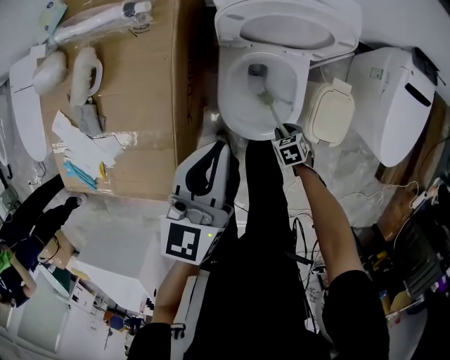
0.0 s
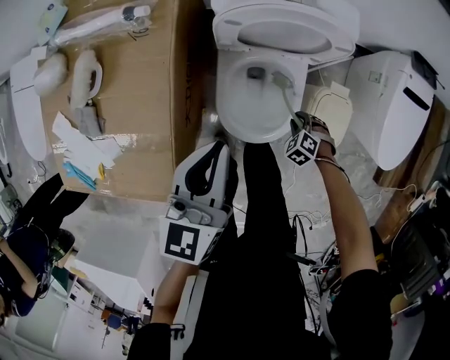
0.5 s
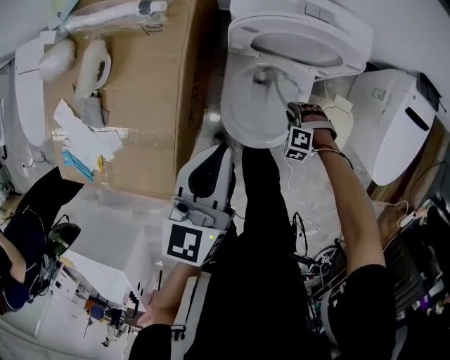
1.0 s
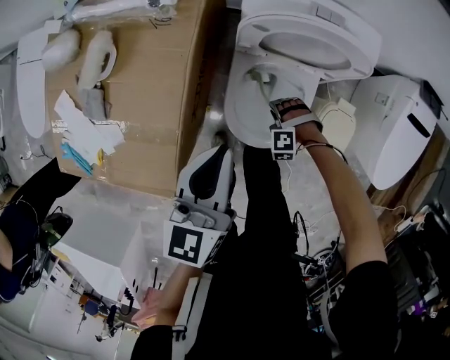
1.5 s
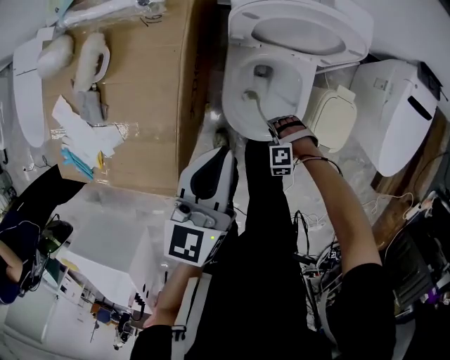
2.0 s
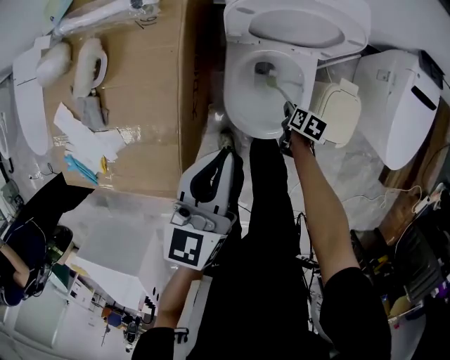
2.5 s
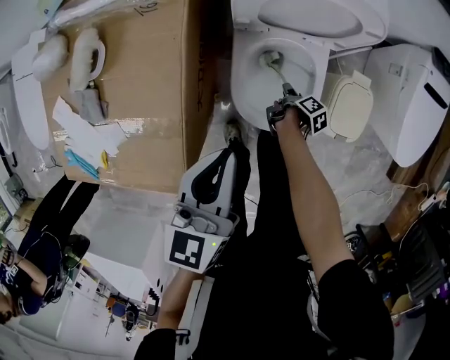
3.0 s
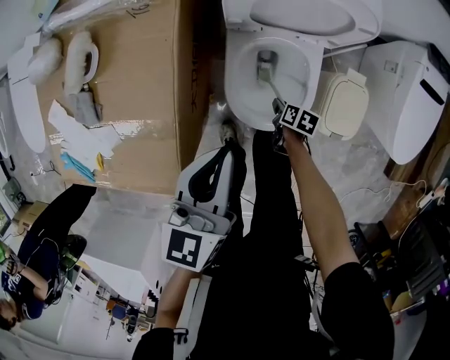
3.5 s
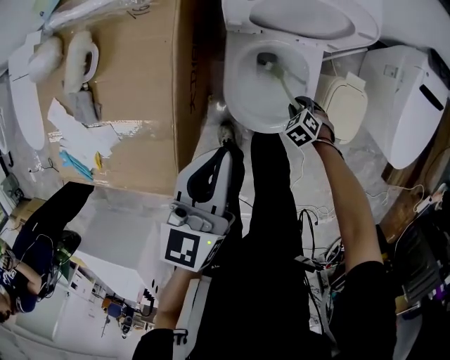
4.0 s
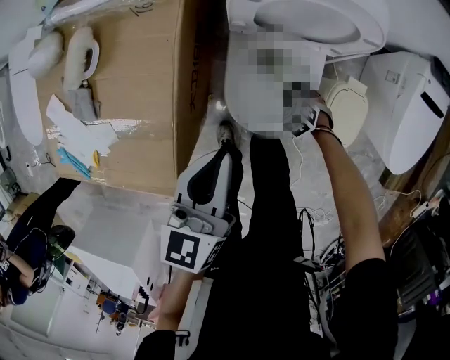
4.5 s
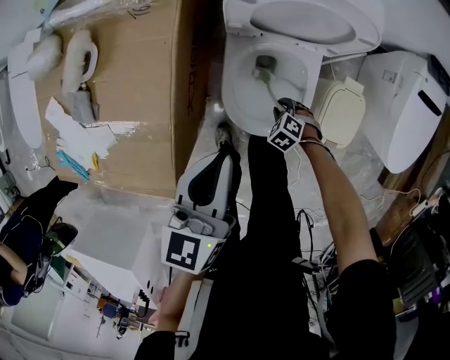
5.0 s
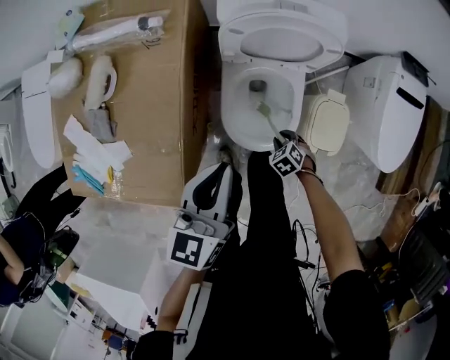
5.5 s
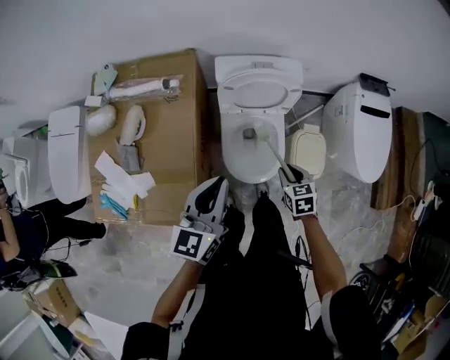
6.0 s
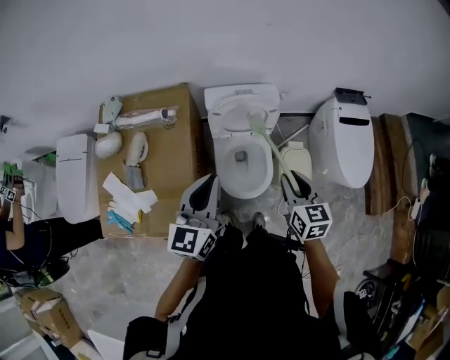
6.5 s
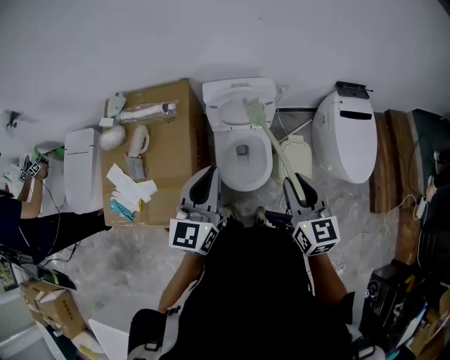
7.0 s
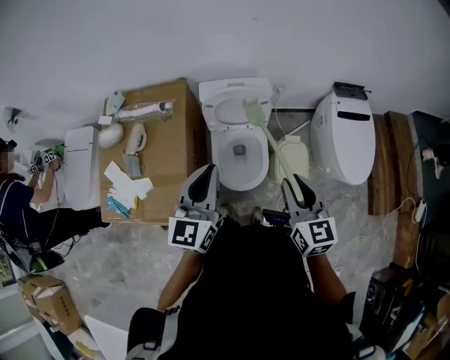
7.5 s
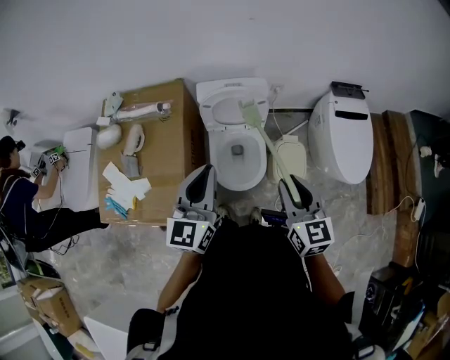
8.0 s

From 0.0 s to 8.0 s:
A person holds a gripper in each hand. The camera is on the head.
From 0.0 s to 2.0 s: The right gripper rotates around the line of its fingers by roughly 80 degrees, counterclockwise from behind.
From 2.0 s to 4.0 s: The right gripper ends up about 10 cm from where it was, and twists some 50 degrees clockwise, seen from behind.
From 4.0 s to 6.0 s: The right gripper travels upward by approximately 35 cm, and rotates around the line of its fingers by some 40 degrees, clockwise from behind. Meanwhile the left gripper travels upward by roughly 15 cm.
From 6.0 s to 8.0 s: The left gripper moves upward and to the right, approximately 15 cm. Meanwhile the right gripper travels upward by some 30 cm, and tips its fingers upward by some 40 degrees.

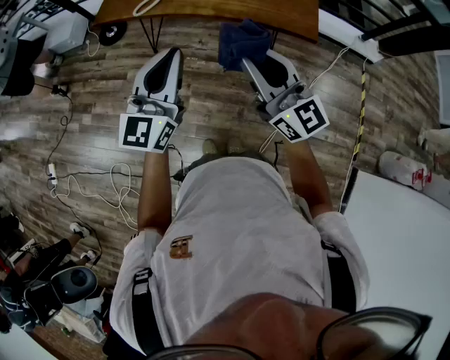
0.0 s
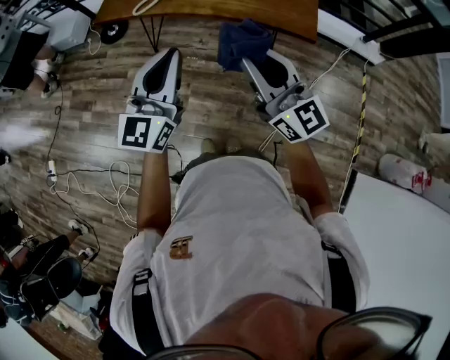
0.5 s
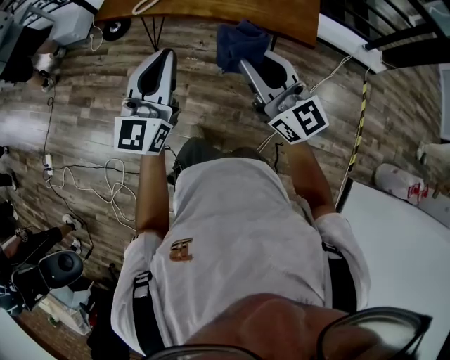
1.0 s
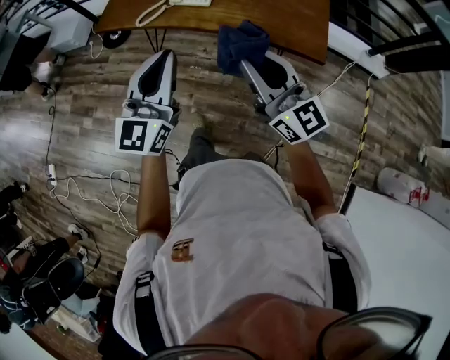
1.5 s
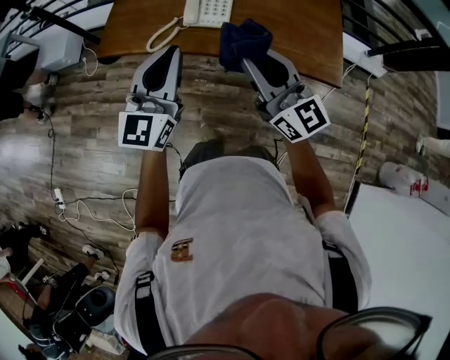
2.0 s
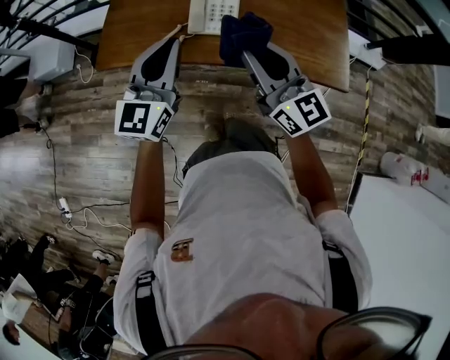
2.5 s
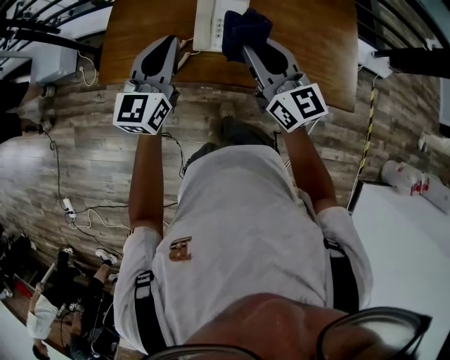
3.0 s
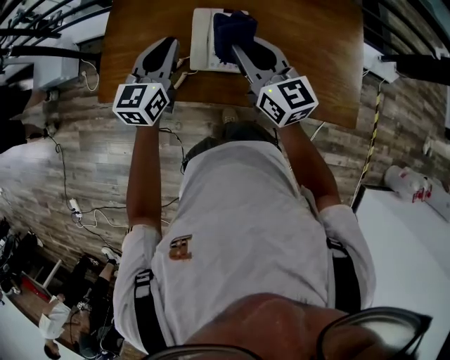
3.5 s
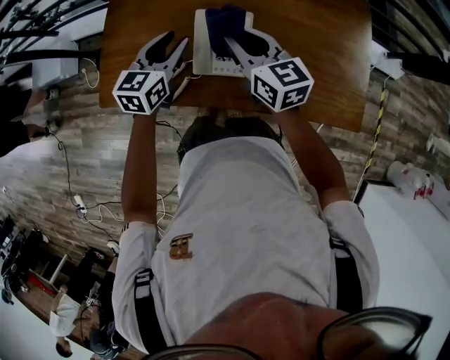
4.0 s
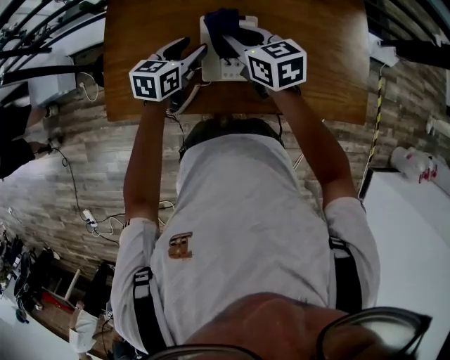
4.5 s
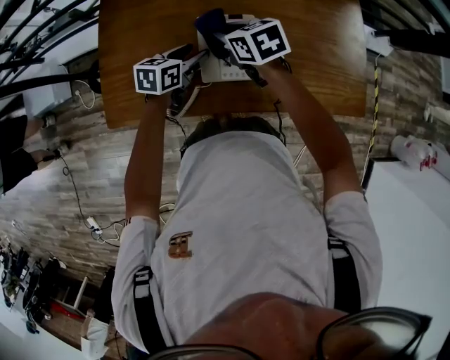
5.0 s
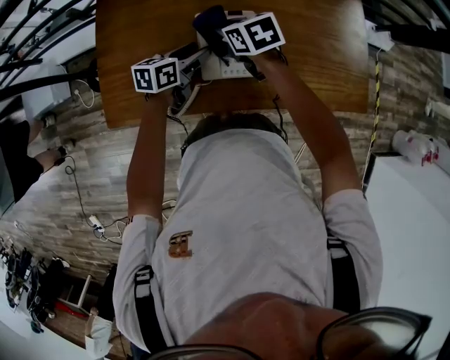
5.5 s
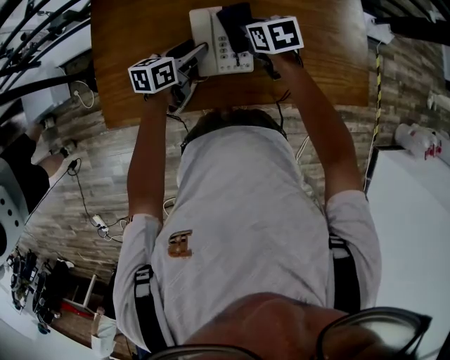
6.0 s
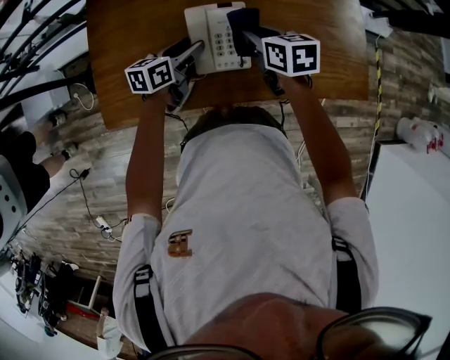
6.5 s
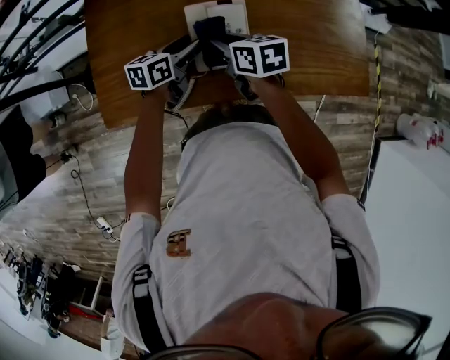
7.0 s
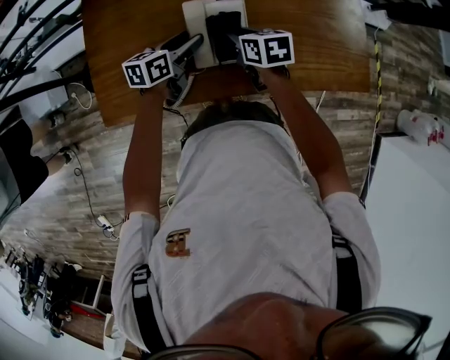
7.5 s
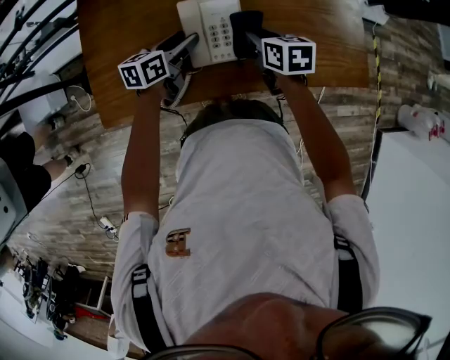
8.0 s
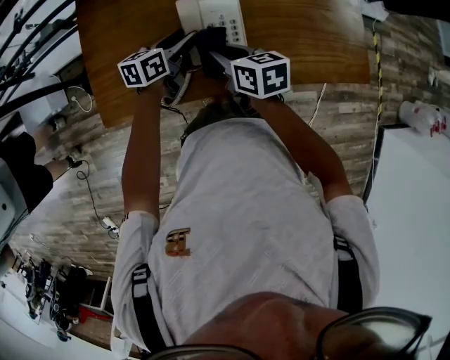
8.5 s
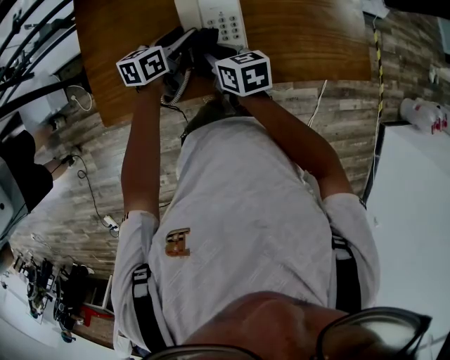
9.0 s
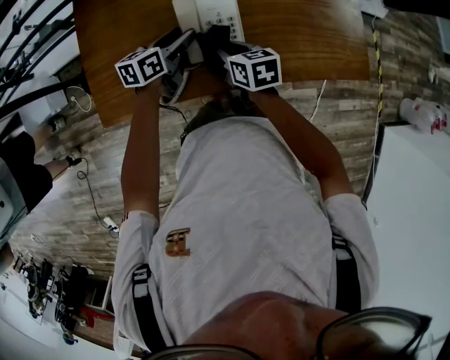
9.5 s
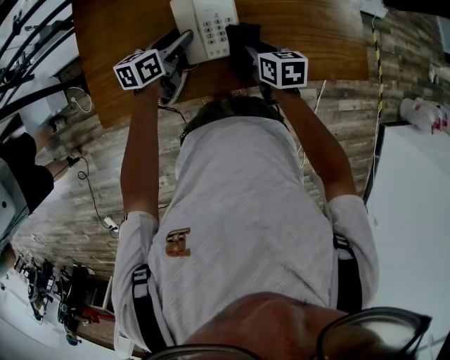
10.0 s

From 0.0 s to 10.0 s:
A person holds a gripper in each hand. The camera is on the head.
From 0.0 s to 2.0 s: The two grippers go approximately 35 cm forward.
From 2.0 s to 4.0 s: Both grippers are carried forward, about 40 cm. The left gripper goes some 15 cm downward, rotates roughly 30 degrees, and opens its fingers. Meanwhile the right gripper swivels approximately 30 degrees.
From 4.0 s to 6.0 s: The left gripper goes some 10 cm downward, rotates about 30 degrees, and opens up. Meanwhile the right gripper heads downward and forward, covering approximately 15 cm, and tips its fingers downward by roughly 40 degrees.
From 6.0 s to 8.0 s: The right gripper goes about 5 cm backward.
From 8.0 s to 10.0 s: The right gripper travels to the left and back again, some 10 cm each way.

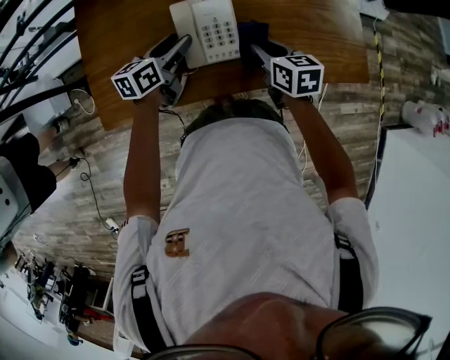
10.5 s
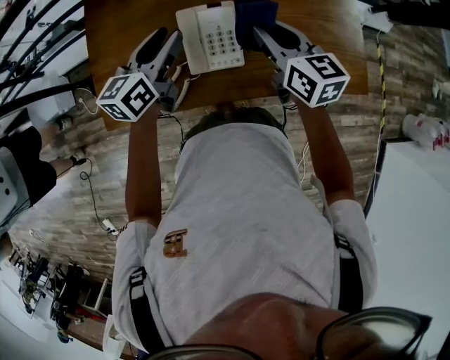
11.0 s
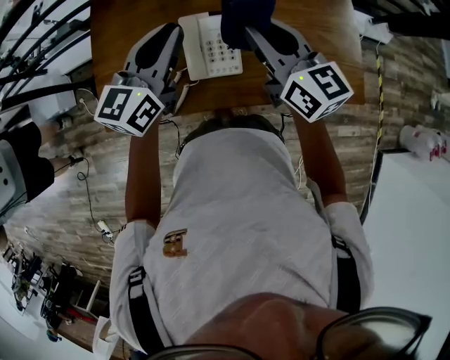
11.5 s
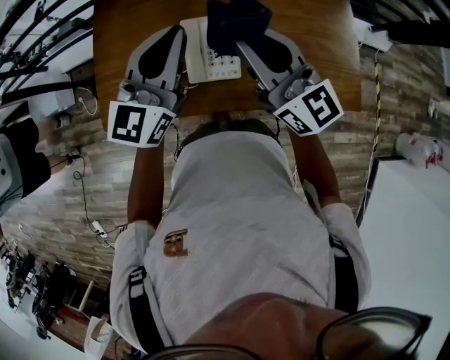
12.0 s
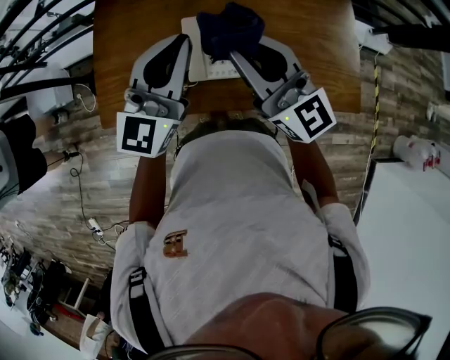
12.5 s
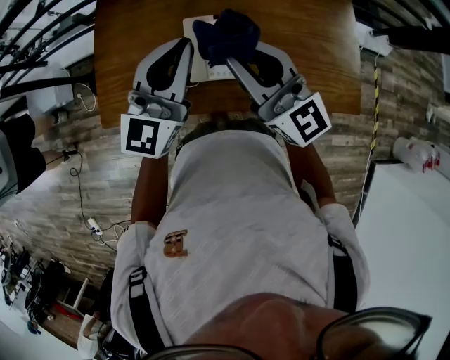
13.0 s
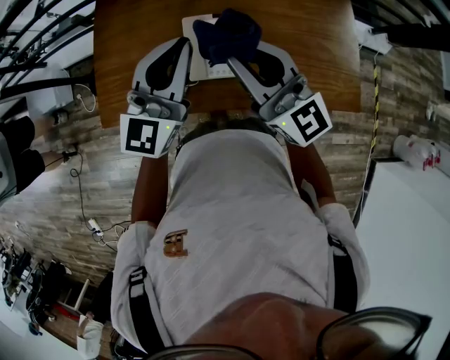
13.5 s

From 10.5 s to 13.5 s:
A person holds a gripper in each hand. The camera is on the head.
From 10.5 s to 12.0 s: The grippers both shift upward by about 25 cm. The left gripper swivels about 50 degrees, and closes its fingers; the right gripper angles its fingers upward, by about 50 degrees.
From 12.0 s to 13.5 s: The grippers stay close to where they were, moving slightly.

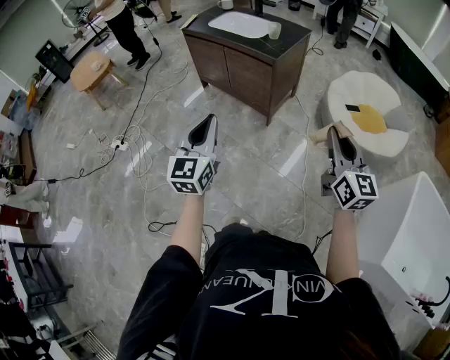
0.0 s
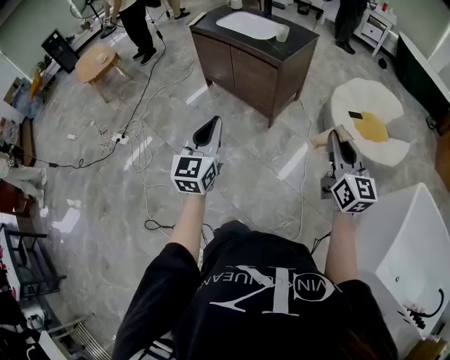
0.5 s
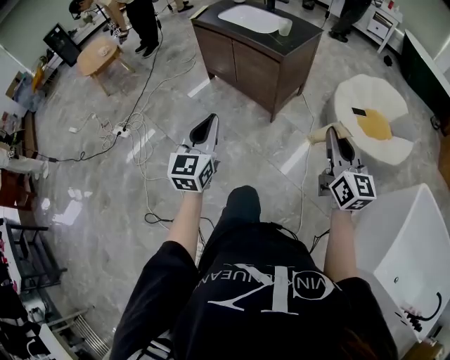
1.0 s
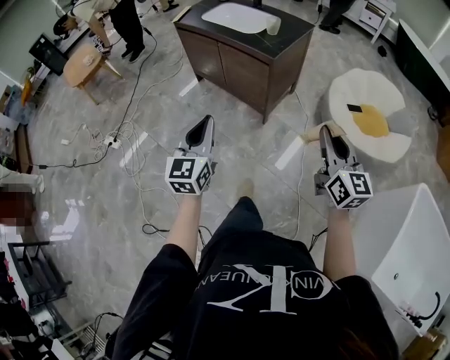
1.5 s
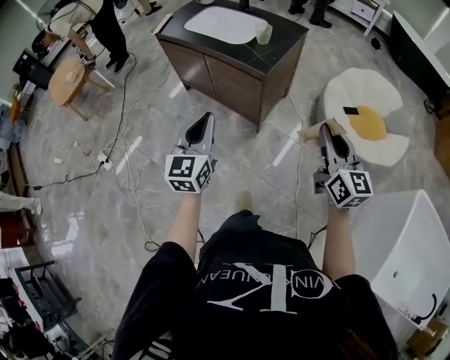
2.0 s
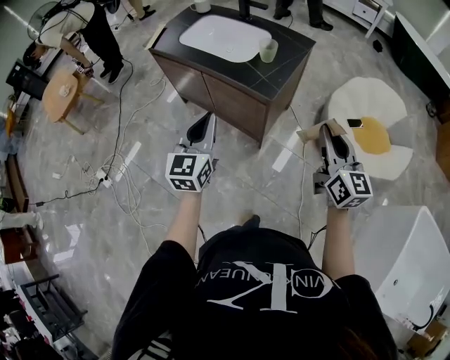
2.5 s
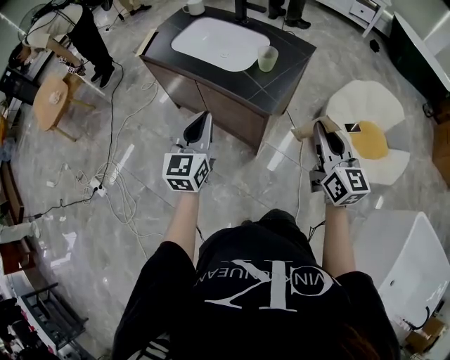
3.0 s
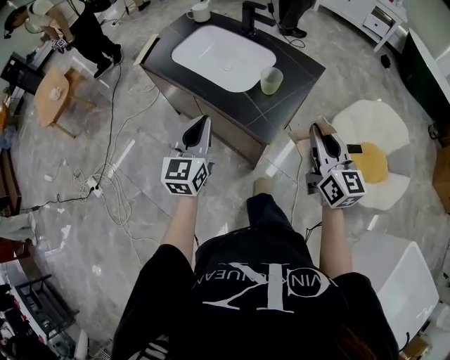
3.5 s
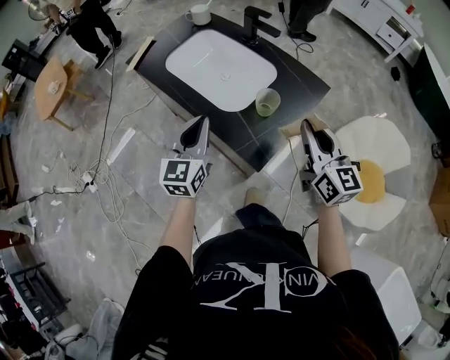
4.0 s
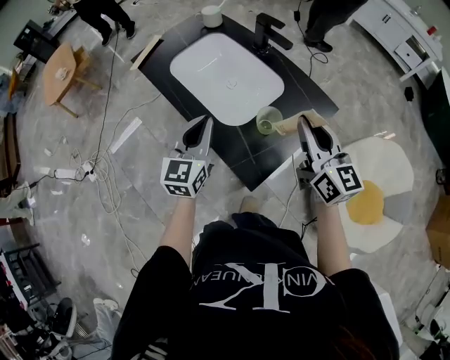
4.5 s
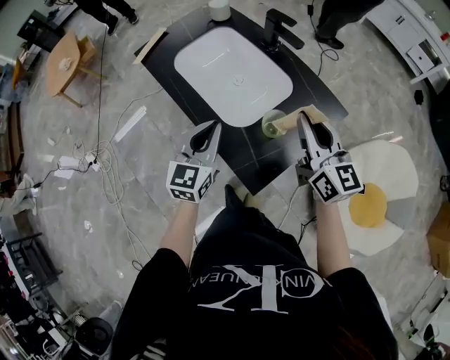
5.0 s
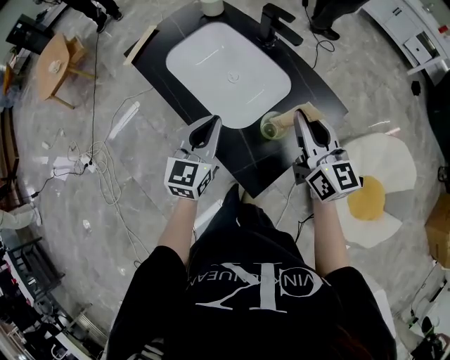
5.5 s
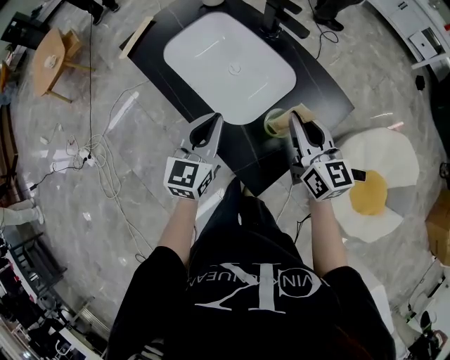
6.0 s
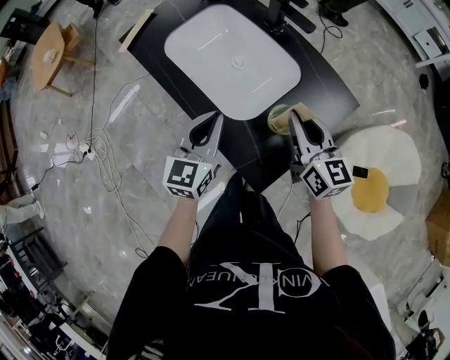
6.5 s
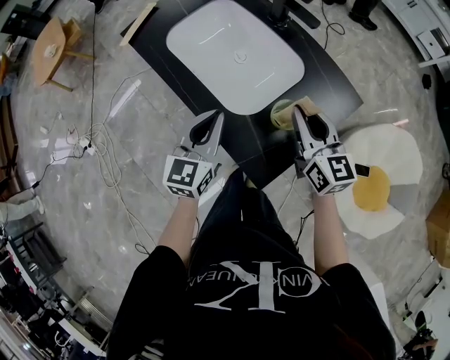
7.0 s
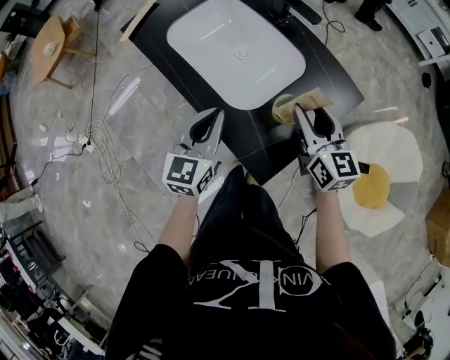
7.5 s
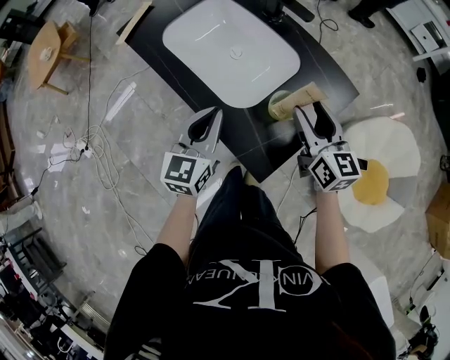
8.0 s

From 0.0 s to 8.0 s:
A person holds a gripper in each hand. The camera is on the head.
From 0.0 s to 2.0 s: Both grippers move forward, some 25 cm.
From 2.0 s to 4.0 s: The pair of grippers is taken forward, about 40 cm.
From 4.0 s to 6.0 s: The right gripper moves forward and downward, about 15 cm, while the left gripper goes some 10 cm forward.
From 6.0 s to 8.0 s: The right gripper opens.
